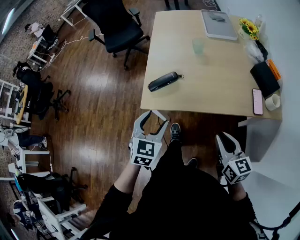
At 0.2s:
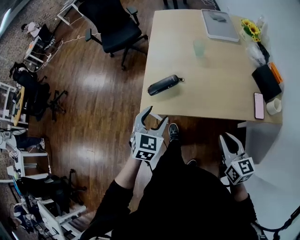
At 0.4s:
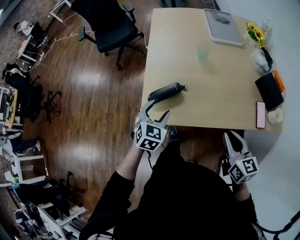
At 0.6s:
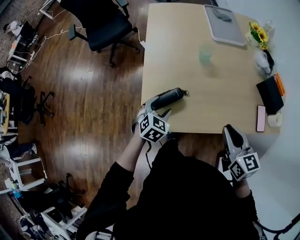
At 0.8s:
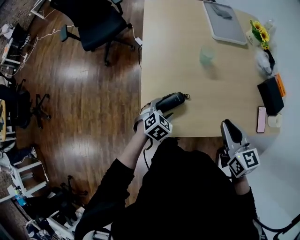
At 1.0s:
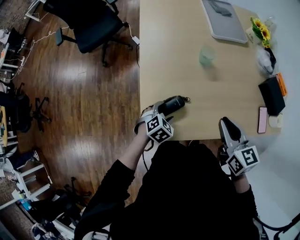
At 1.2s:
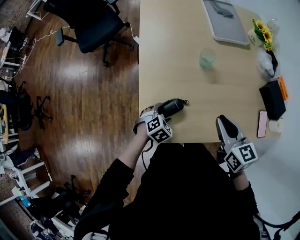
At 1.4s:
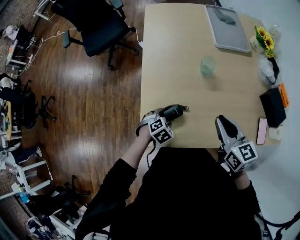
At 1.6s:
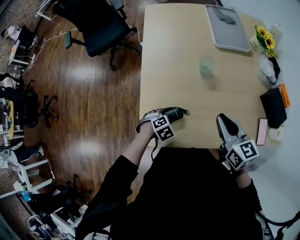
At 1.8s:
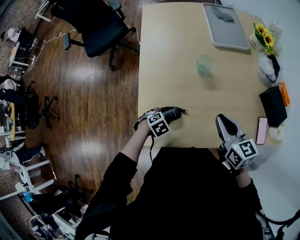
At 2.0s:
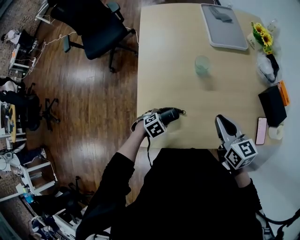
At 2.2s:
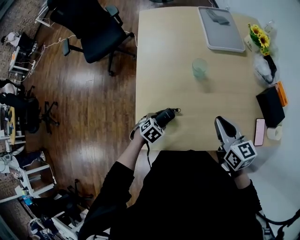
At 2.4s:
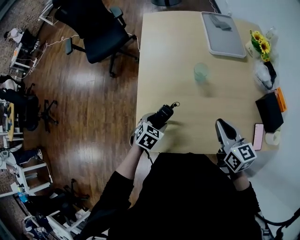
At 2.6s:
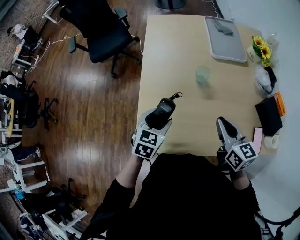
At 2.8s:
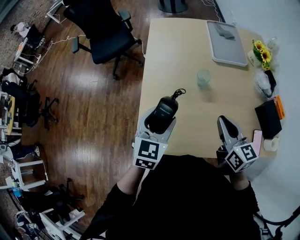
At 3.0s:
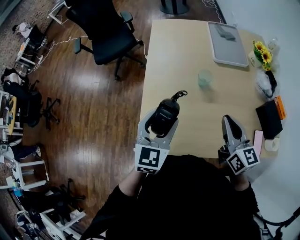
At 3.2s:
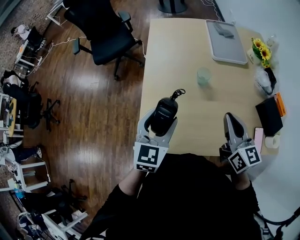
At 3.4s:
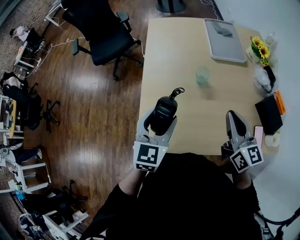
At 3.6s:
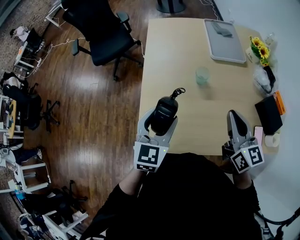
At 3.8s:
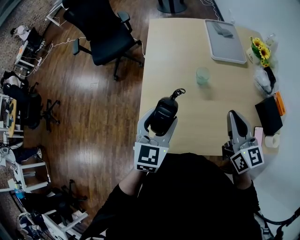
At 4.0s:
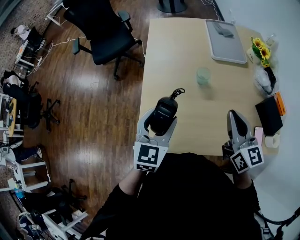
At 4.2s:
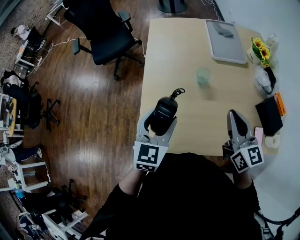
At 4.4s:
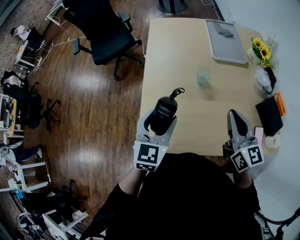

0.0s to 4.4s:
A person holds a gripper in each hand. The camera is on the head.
0.0s to 1.4s: The right gripper travels forward by approximately 30 cm; the left gripper shifts some 30 cm downward and forward, and angles its fingers downward, by roughly 40 degrees.
1.4s to 3.0s: The left gripper goes roughly 30 cm upward, and points its fingers about 50 degrees further upward, while the right gripper goes some 5 cm upward.
3.0s to 4.4s: There are only small adjustments of the grippers.

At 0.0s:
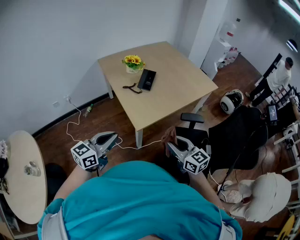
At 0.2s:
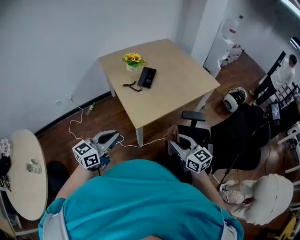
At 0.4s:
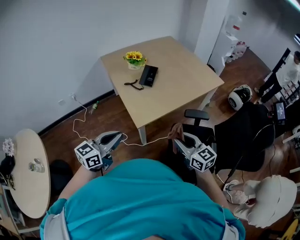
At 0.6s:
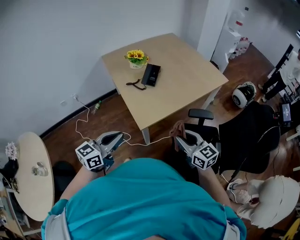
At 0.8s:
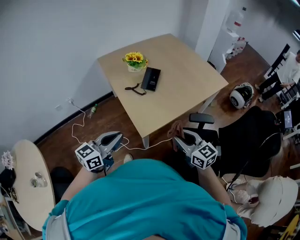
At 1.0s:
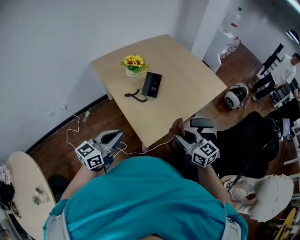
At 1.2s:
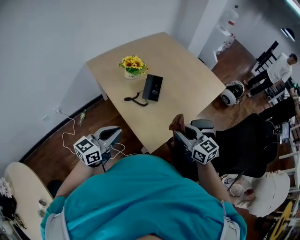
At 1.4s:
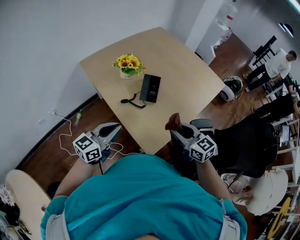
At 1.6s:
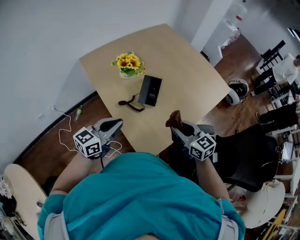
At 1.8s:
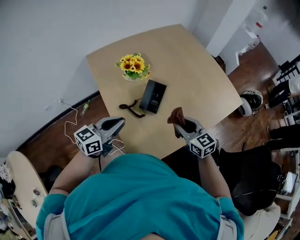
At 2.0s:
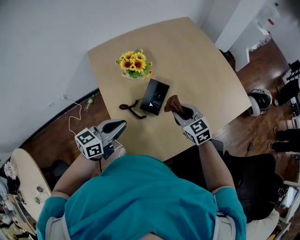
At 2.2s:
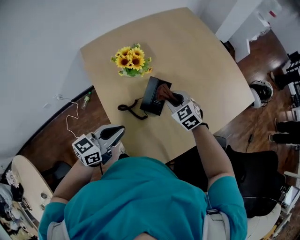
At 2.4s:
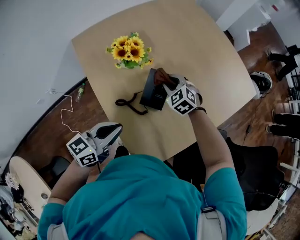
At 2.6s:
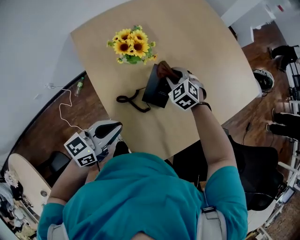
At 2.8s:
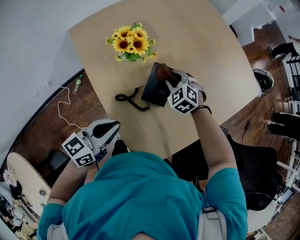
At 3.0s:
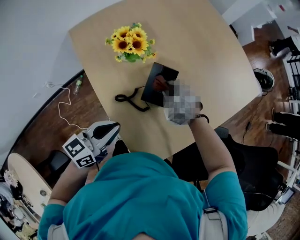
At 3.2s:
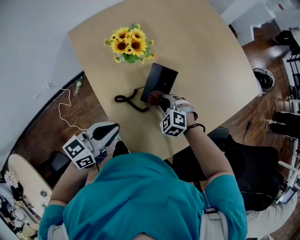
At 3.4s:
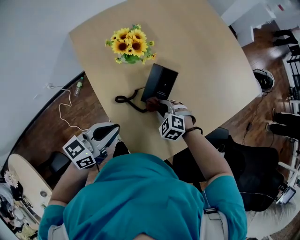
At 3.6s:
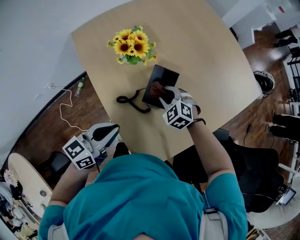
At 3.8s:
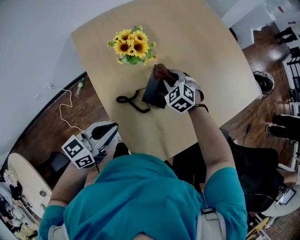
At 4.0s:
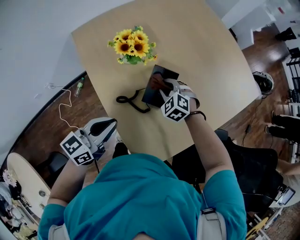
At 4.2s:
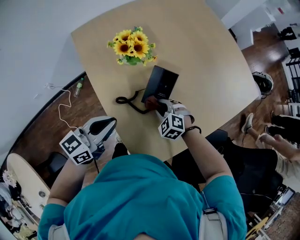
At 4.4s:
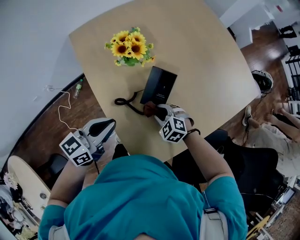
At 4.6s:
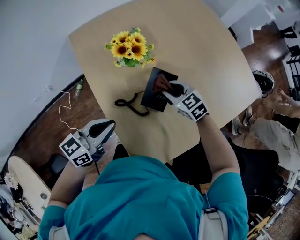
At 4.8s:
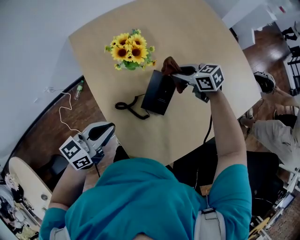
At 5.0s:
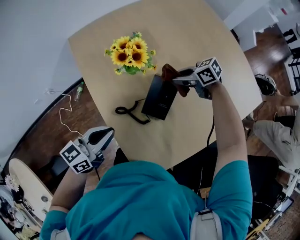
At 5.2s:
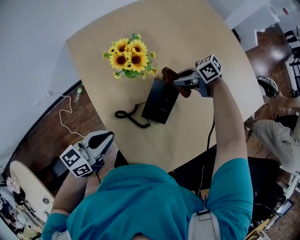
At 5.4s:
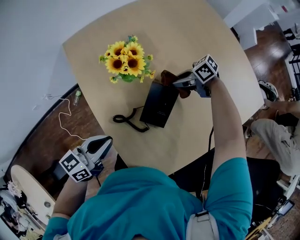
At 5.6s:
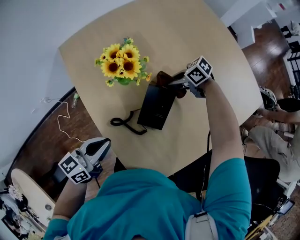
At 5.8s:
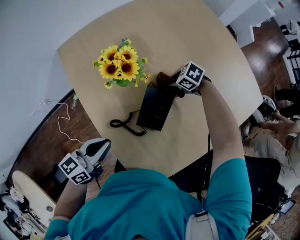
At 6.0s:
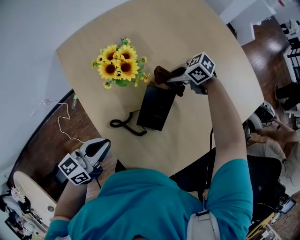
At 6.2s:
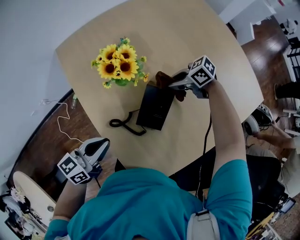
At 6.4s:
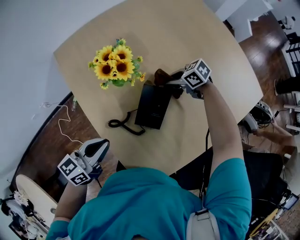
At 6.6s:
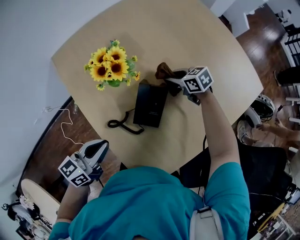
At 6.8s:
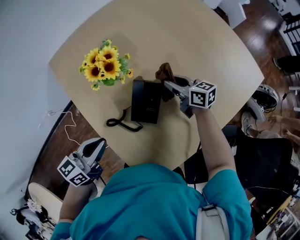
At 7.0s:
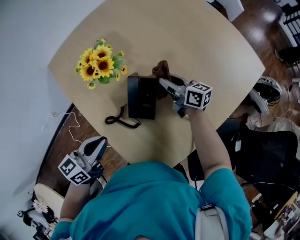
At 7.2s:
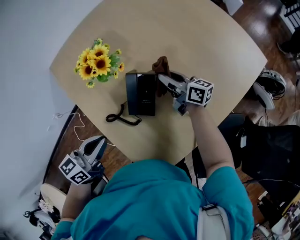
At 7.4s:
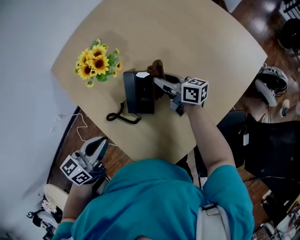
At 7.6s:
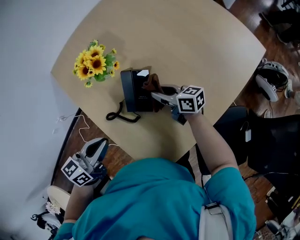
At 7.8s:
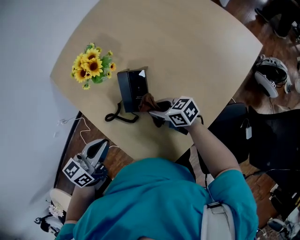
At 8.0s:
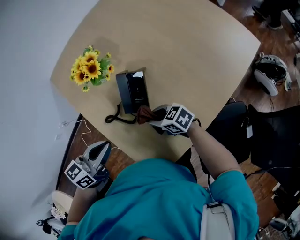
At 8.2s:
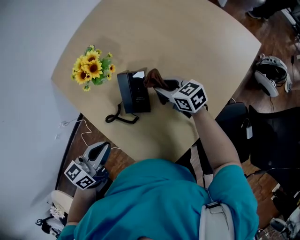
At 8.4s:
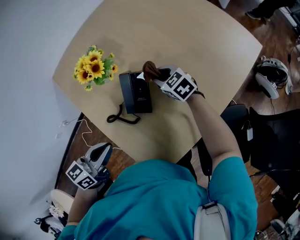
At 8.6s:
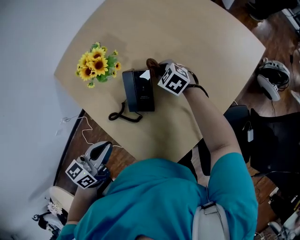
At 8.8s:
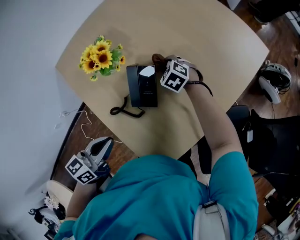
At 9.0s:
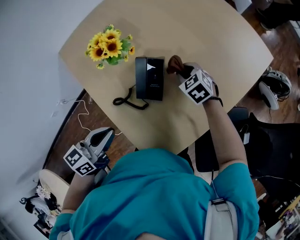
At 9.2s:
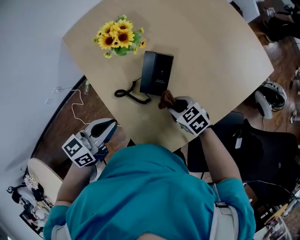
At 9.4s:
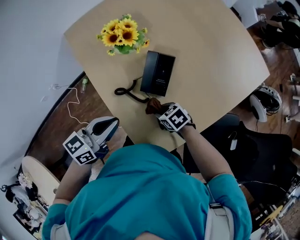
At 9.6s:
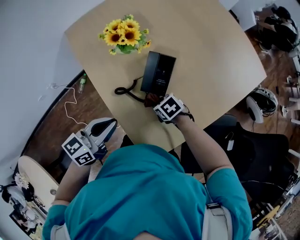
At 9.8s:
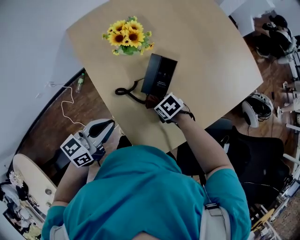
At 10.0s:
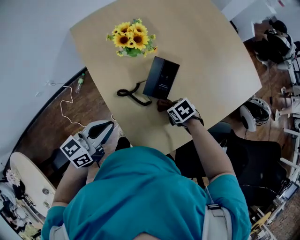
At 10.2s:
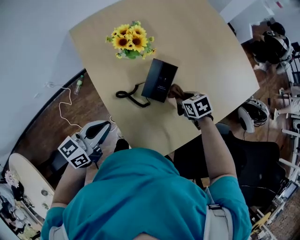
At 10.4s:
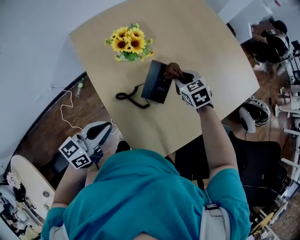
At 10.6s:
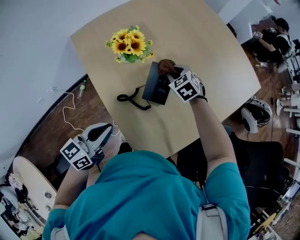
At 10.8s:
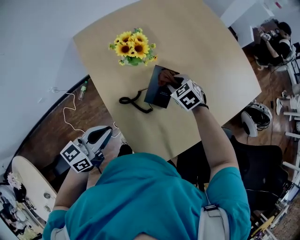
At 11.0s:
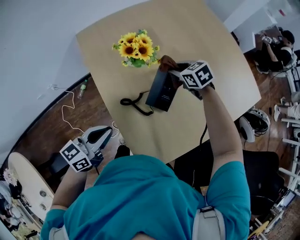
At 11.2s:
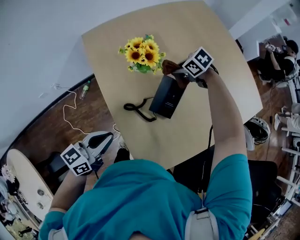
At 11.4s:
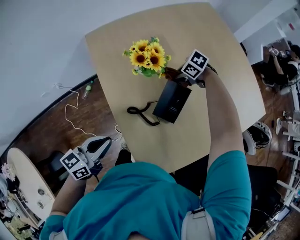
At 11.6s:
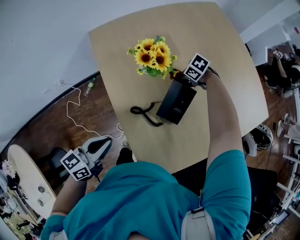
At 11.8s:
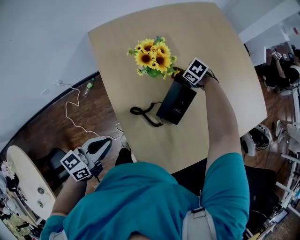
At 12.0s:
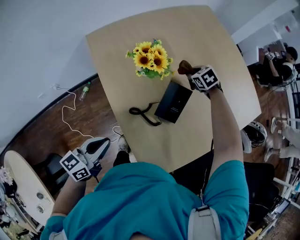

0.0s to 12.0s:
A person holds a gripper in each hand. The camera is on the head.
0.0s to 1.6s: The grippers both shift forward and downward by some 40 cm.
1.6s to 3.0s: The right gripper shifts about 30 cm forward and downward, and rolls counterclockwise, seen from behind, by roughly 40 degrees. Meanwhile the left gripper travels forward and downward by about 10 cm.
3.0s to 4.4s: The right gripper goes forward and backward, roughly 15 cm each way, reversing 2 times.
4.4s to 6.0s: The right gripper swings up and down, approximately 10 cm each way, with 2 reversals, and swivels about 50 degrees, while the left gripper shifts by some 5 cm.
6.0s to 7.6s: The left gripper ends up roughly 5 cm from where it was. Meanwhile the right gripper changes place by roughly 15 cm, and rotates approximately 60 degrees.
7.6s to 9.0s: The right gripper tilts its fingers some 40 degrees downward.
9.0s to 10.4s: The left gripper shifts by approximately 5 cm. Meanwhile the right gripper goes roughly 5 cm upward.
10.4s to 12.0s: The right gripper goes downward and returns, approximately 10 cm each way, while the left gripper changes place by some 10 cm.

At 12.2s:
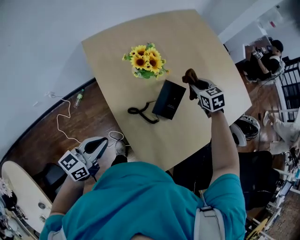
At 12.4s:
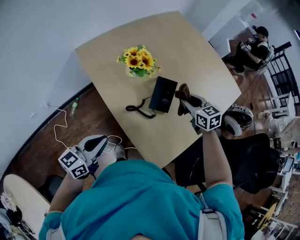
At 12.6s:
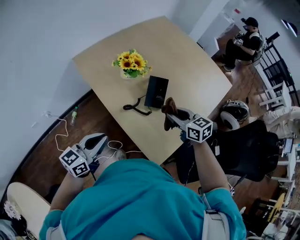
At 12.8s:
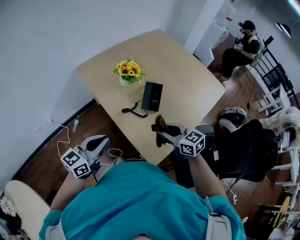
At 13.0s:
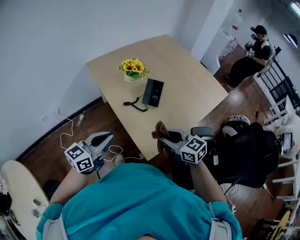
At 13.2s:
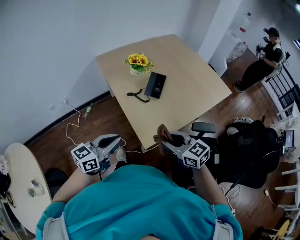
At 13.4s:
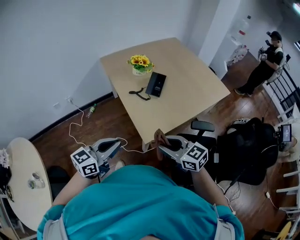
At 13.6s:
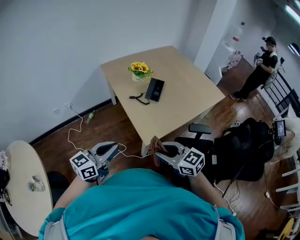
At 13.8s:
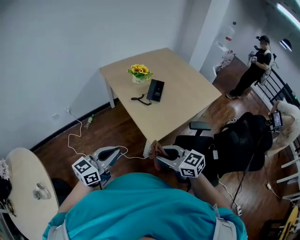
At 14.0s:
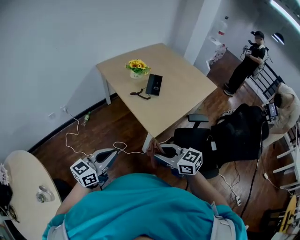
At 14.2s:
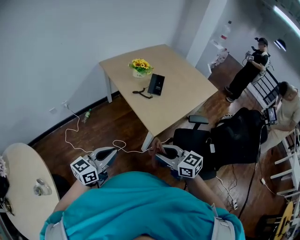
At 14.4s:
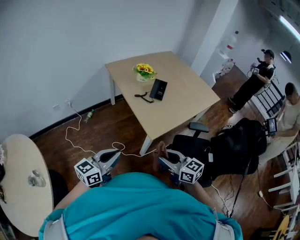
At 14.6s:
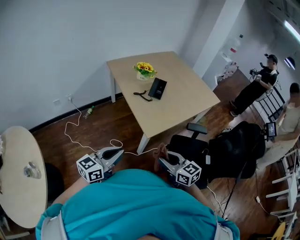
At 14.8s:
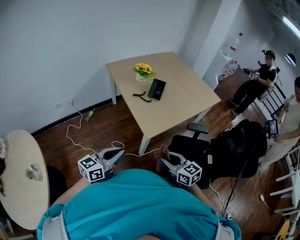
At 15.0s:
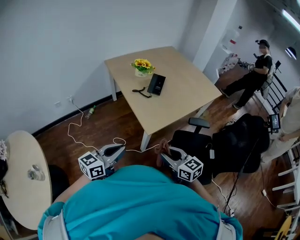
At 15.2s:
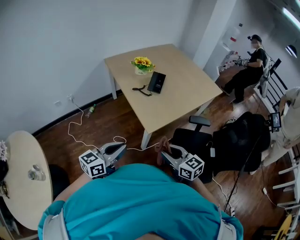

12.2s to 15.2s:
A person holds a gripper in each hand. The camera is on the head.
12.2s to 13.8s: The left gripper is displaced backward by roughly 40 cm; the right gripper heads backward, covering some 70 cm, and swivels about 40 degrees.
13.8s to 15.2s: Both grippers move to the right, roughly 5 cm.

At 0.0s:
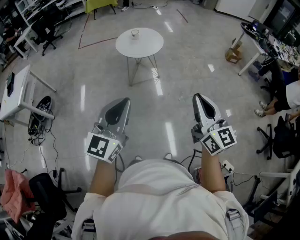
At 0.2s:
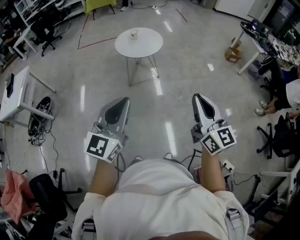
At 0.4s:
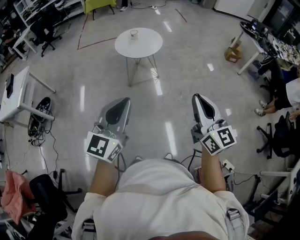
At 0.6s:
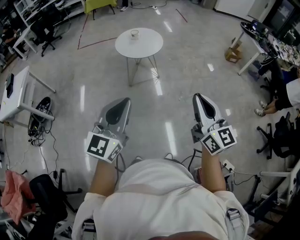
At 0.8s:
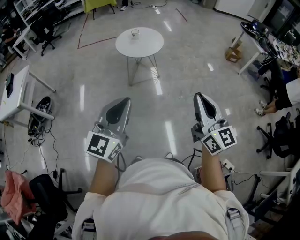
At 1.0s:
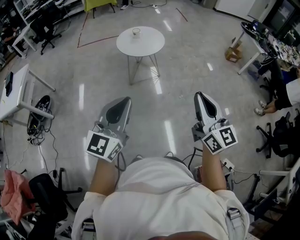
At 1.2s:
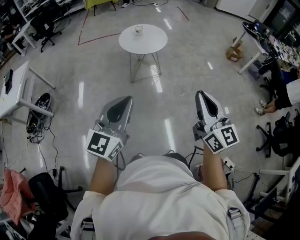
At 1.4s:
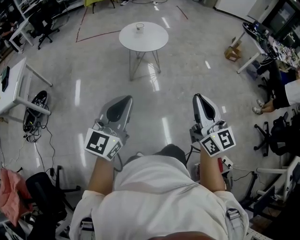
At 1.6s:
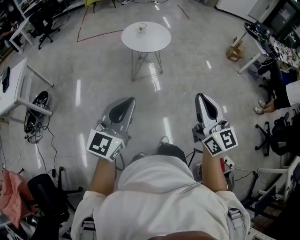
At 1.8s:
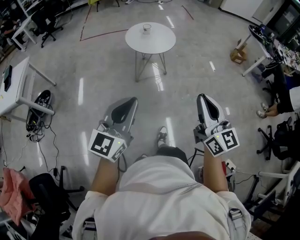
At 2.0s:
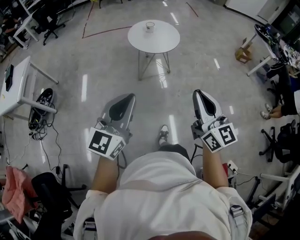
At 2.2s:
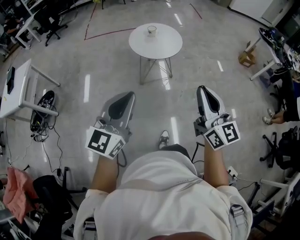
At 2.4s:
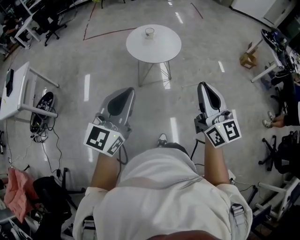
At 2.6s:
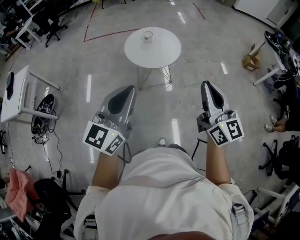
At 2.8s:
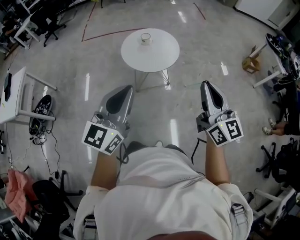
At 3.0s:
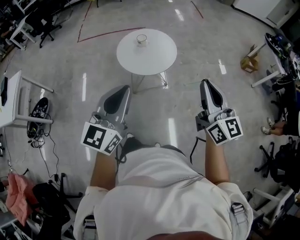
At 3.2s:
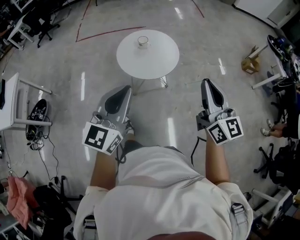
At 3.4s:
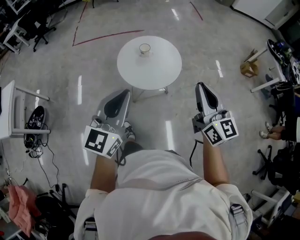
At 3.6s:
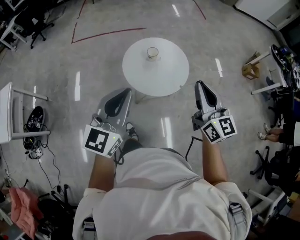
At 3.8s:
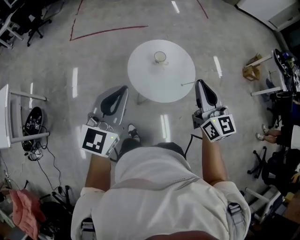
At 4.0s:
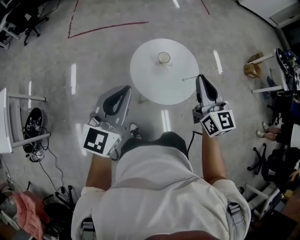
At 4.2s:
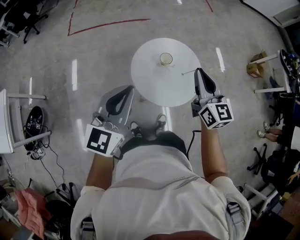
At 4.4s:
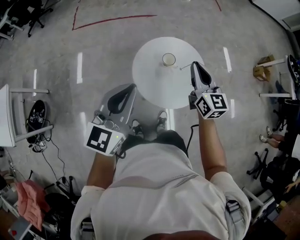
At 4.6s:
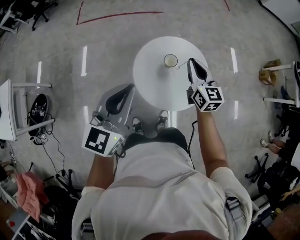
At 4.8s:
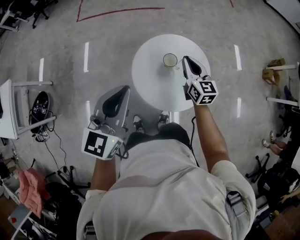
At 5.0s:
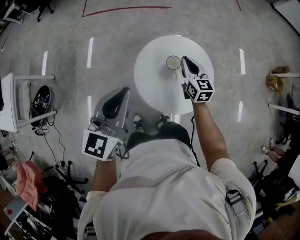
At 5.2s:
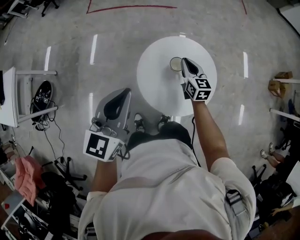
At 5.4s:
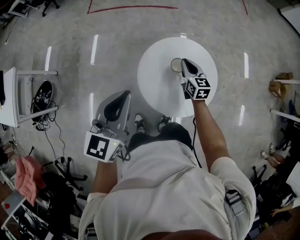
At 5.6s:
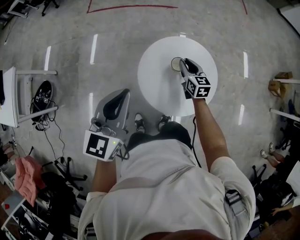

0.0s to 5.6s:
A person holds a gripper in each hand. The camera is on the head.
0.0s to 1.4s: The two grippers go approximately 10 cm to the left.
1.4s to 2.8s: The two grippers travel together, forward, some 40 cm.
2.8s to 4.2s: The two grippers travel together, forward and to the left, roughly 60 cm.
4.2s to 5.6s: The left gripper travels forward and downward by roughly 15 cm; the right gripper travels downward and forward by some 35 cm, and changes its angle by some 30 degrees.
